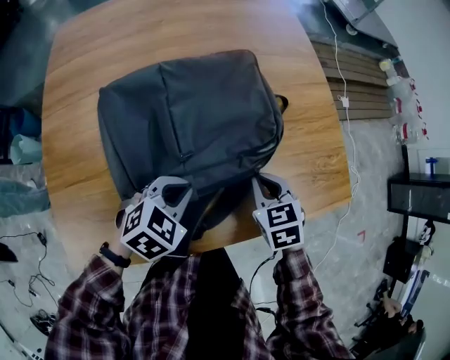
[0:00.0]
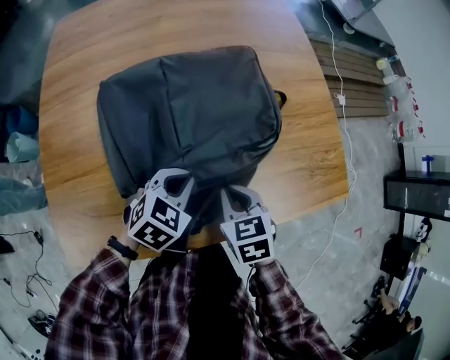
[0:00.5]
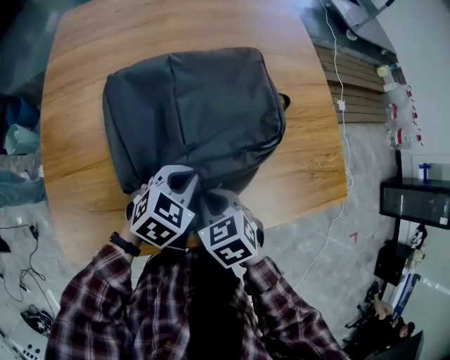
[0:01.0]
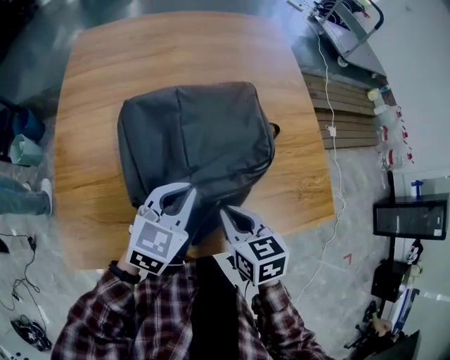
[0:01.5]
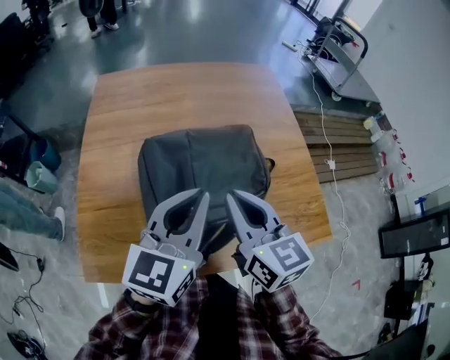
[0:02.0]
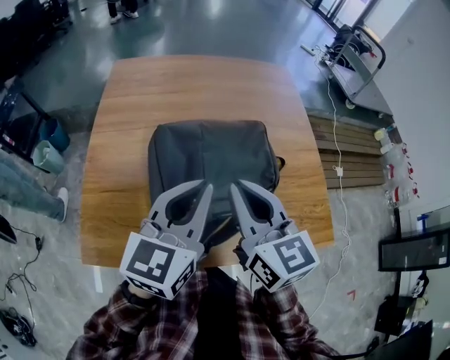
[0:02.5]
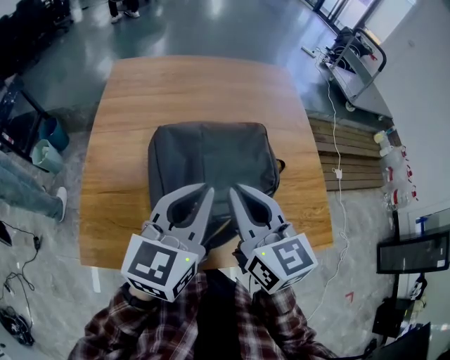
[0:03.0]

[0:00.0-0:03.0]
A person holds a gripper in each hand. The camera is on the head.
0:00.0 to 0:01.5: The left gripper goes approximately 10 cm upward, and swivels roughly 30 degrees; the right gripper shifts about 15 cm to the left, upward and backward.
0:01.5 to 0:03.0: The grippers both shift upward by about 20 cm. The right gripper tips its fingers upward by approximately 30 degrees. Meanwhile the left gripper turns by roughly 30 degrees.

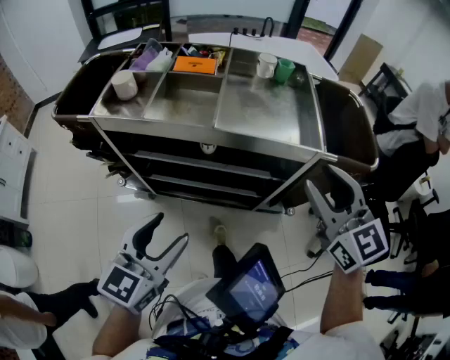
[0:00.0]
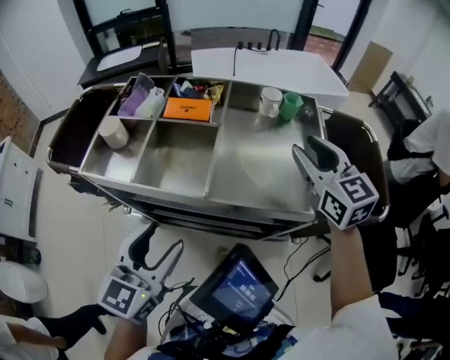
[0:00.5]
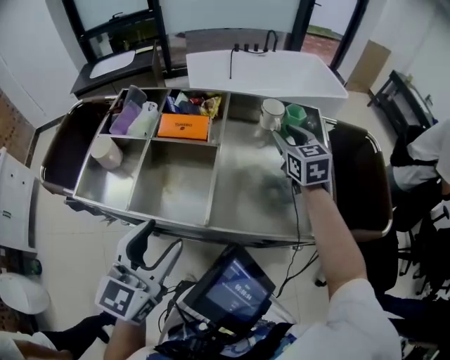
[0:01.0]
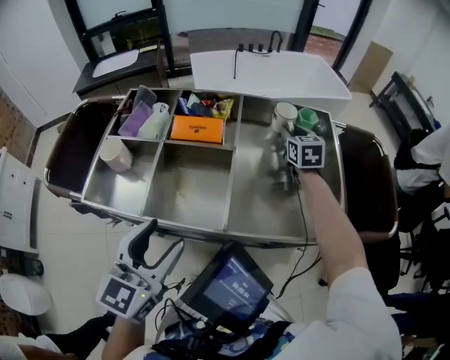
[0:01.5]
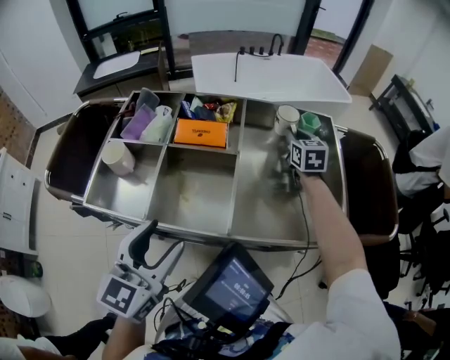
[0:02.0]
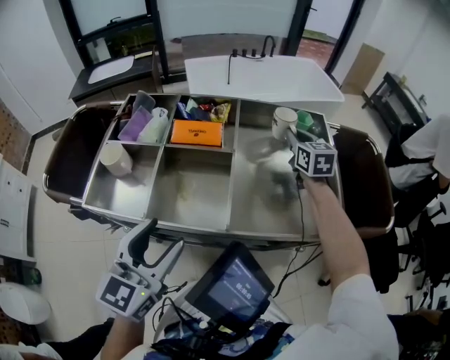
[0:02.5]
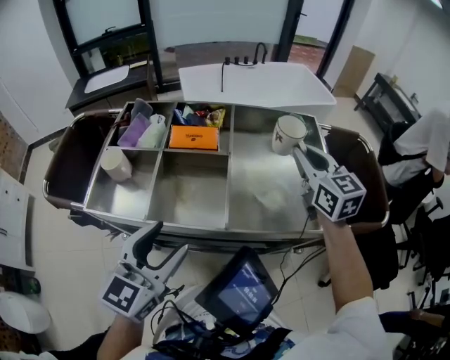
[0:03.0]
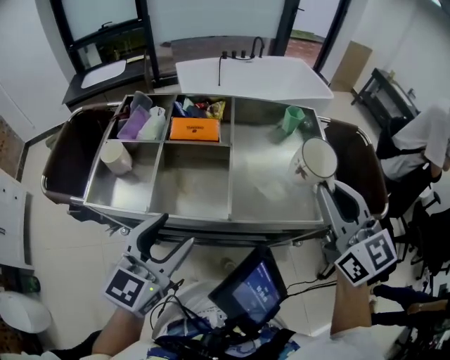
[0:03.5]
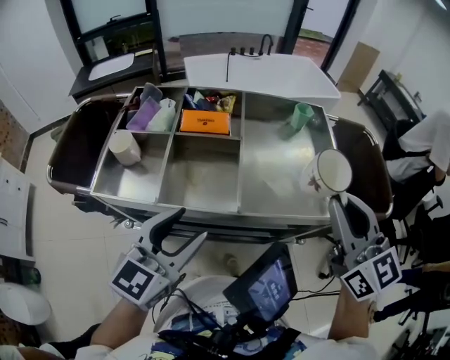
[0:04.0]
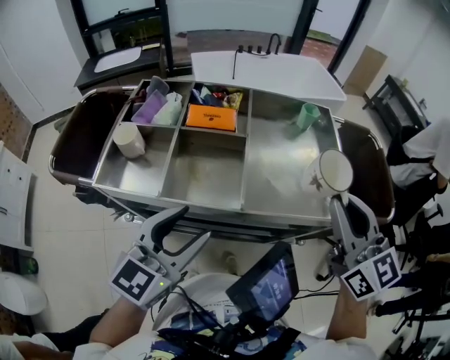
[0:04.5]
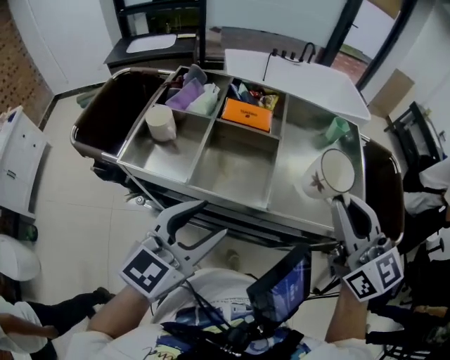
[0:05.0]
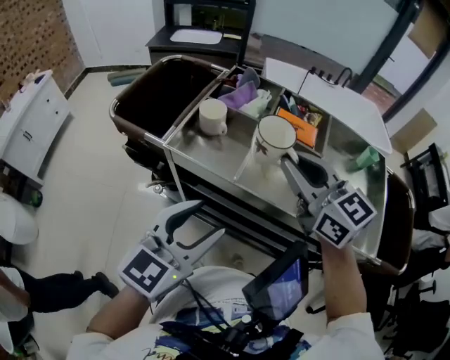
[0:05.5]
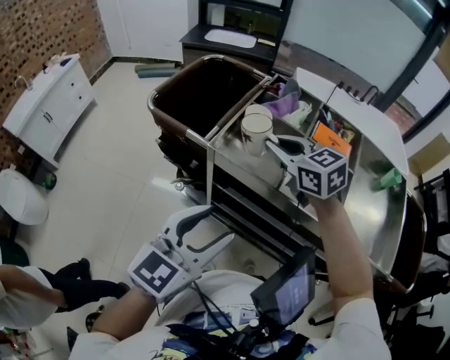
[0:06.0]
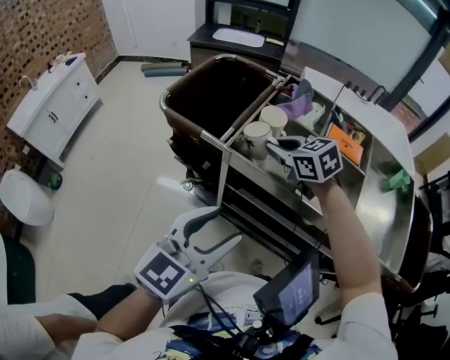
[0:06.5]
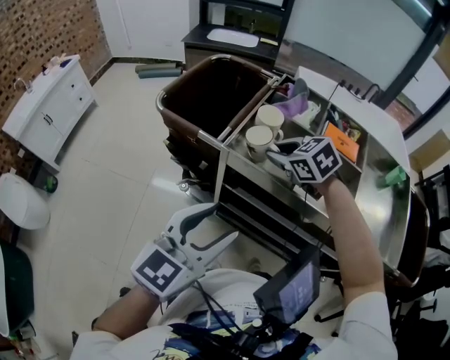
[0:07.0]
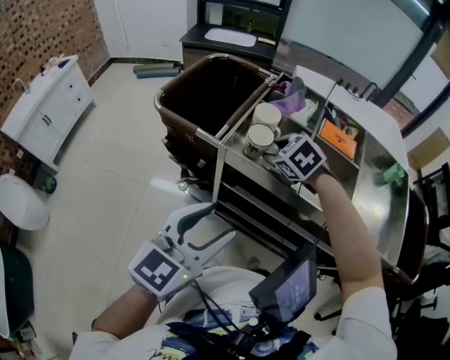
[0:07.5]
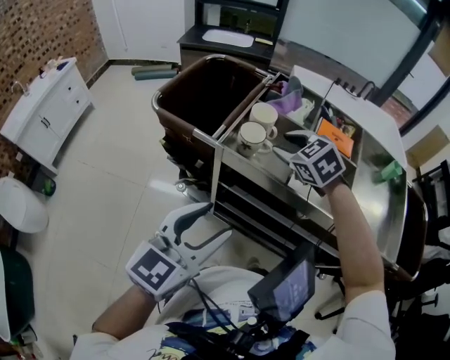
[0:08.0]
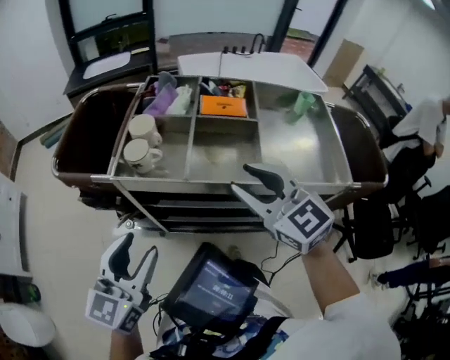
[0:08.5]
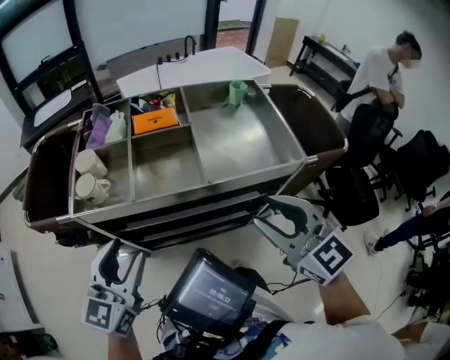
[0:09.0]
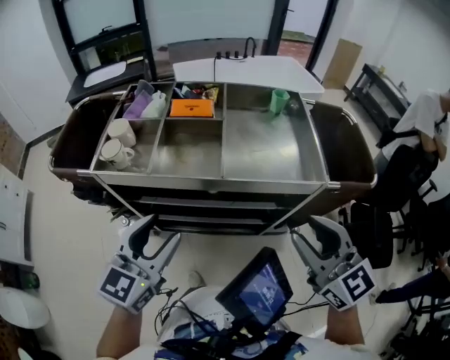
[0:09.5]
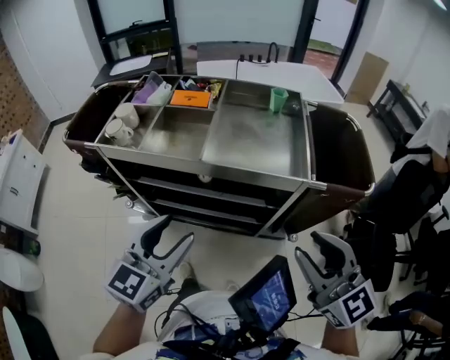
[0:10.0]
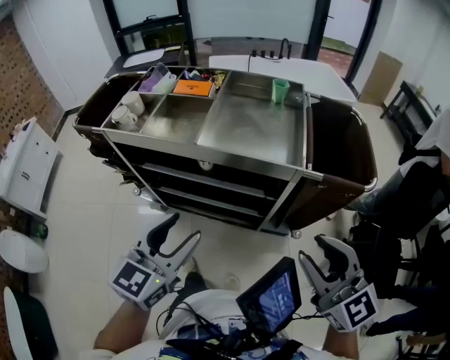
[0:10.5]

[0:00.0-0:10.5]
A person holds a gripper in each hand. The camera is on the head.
0:00.0 to 0:02.0: The left gripper goes roughly 25 cm forward, while the right gripper goes about 50 cm forward, changes its angle by some 30 degrees, and closes.
0:02.0 to 0:04.0: The right gripper goes roughly 40 cm backward and upward, and swivels about 20 degrees.
0:04.0 to 0:06.5: The left gripper moves some 25 cm; the right gripper ends up approximately 50 cm from where it was, and tilts its fingers about 30 degrees downward.
0:06.5 to 0:08.5: The right gripper shifts roughly 30 cm backward, to the right and upward, changes its angle by roughly 30 degrees, and opens up.
0:08.5 to 0:10.5: The pair of grippers is taken to the right and backward, roughly 50 cm.

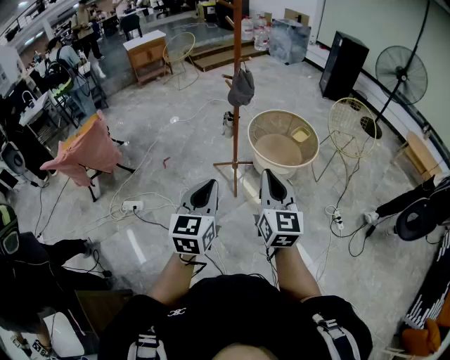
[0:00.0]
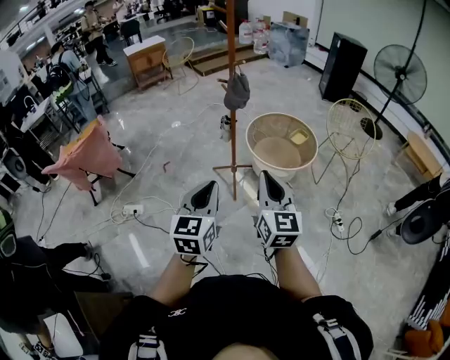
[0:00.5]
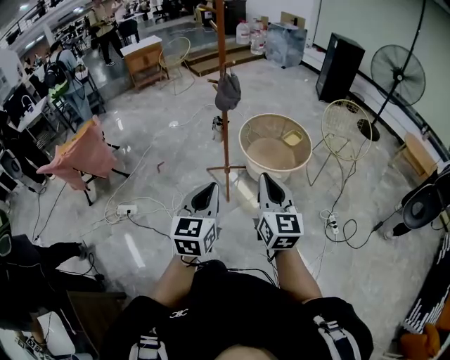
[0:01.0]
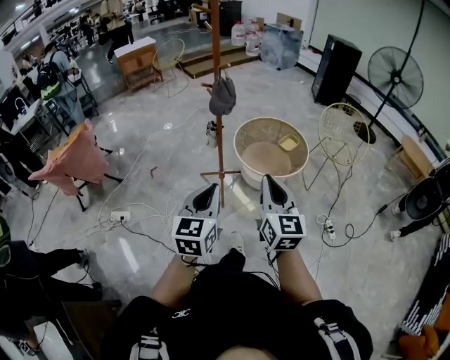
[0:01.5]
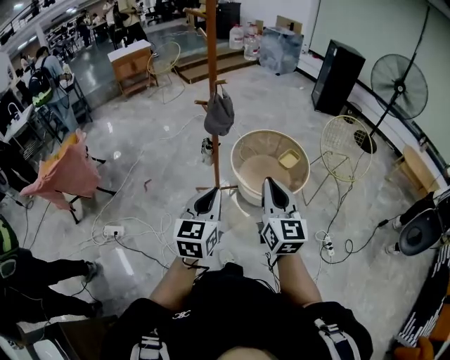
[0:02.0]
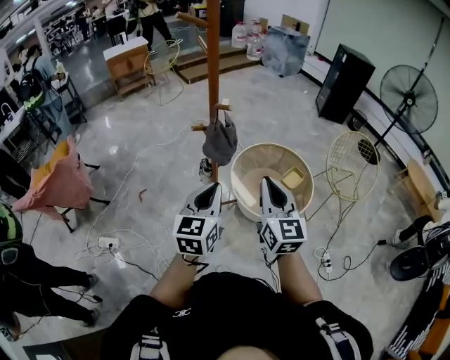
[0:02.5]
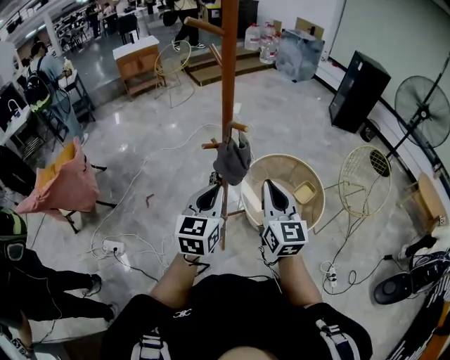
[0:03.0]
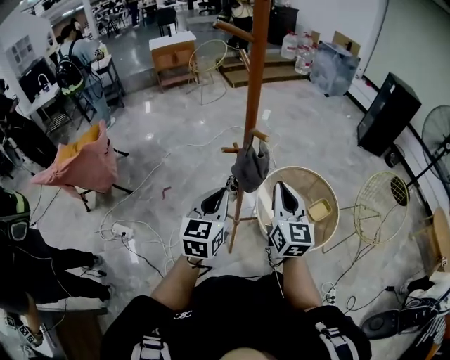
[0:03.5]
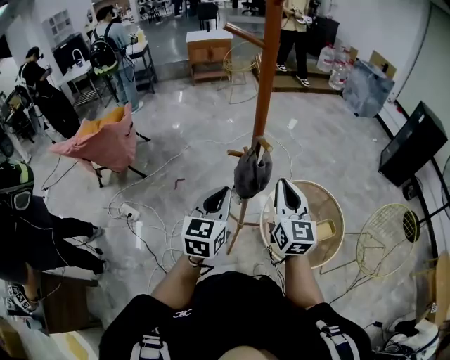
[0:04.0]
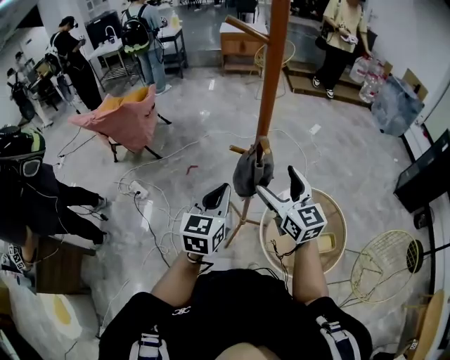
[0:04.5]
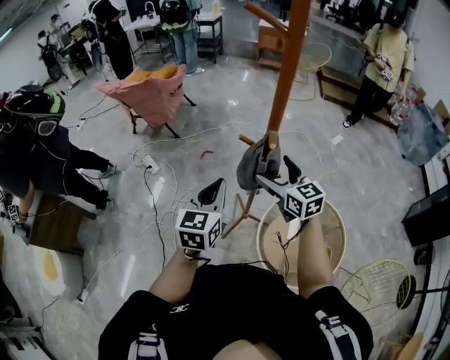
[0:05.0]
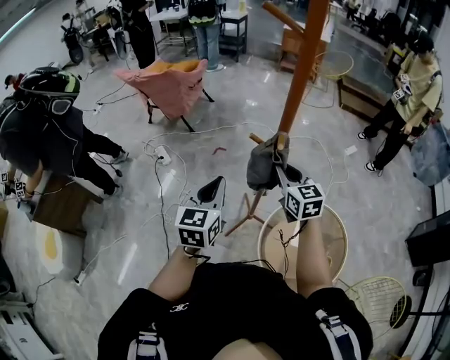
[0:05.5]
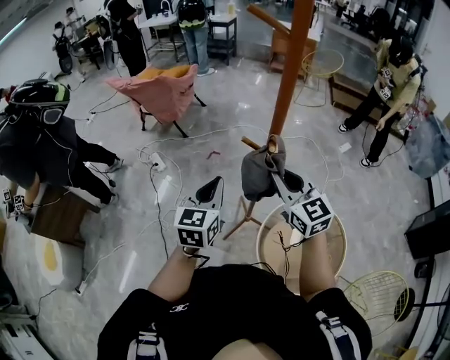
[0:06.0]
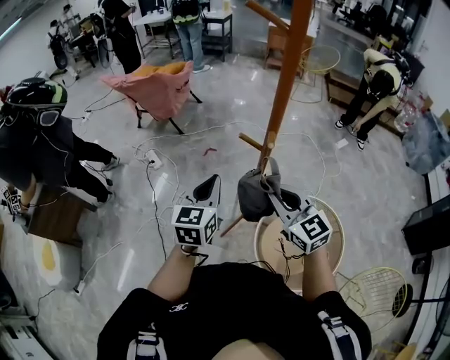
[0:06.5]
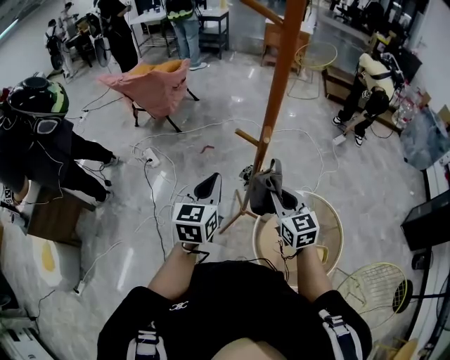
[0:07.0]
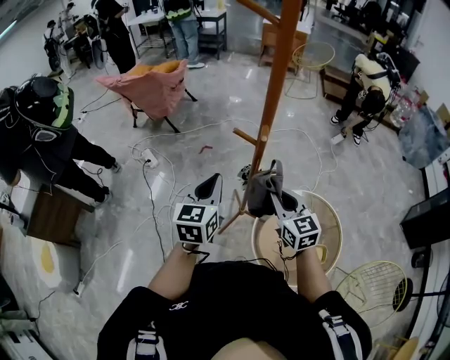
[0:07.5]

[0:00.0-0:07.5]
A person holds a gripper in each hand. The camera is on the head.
0:00.0 to 0:02.0: Both grippers travel together forward, roughly 25 cm.
0:02.0 to 0:04.0: The grippers both shift forward by approximately 40 cm. The left gripper swivels some 20 degrees; the right gripper rotates approximately 20 degrees.
0:04.0 to 0:05.5: The left gripper rotates about 30 degrees. The right gripper changes place by roughly 15 cm, changes its angle by approximately 50 degrees, and opens and closes again.
0:05.5 to 0:07.5: The right gripper goes some 10 cm backward, and reaches about 5 cm upward, then returns.

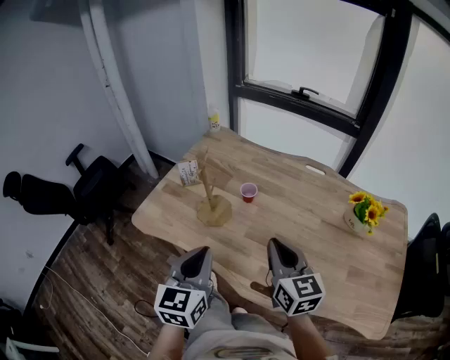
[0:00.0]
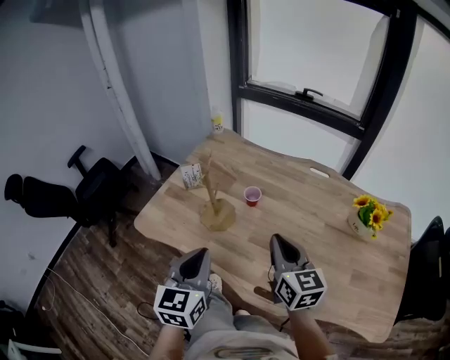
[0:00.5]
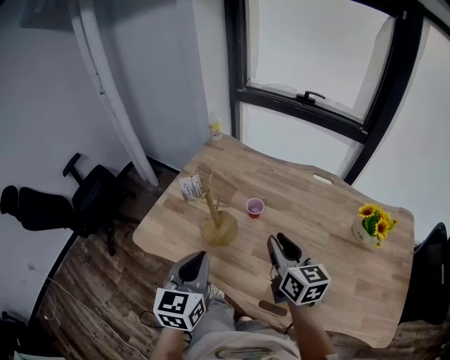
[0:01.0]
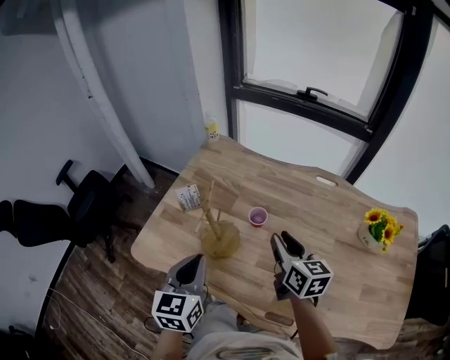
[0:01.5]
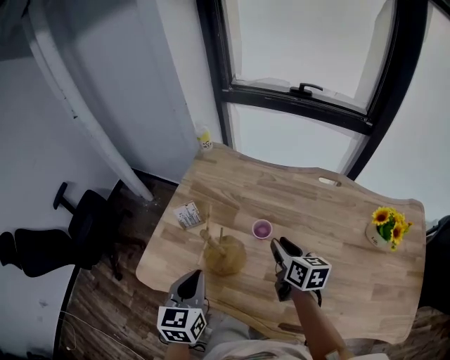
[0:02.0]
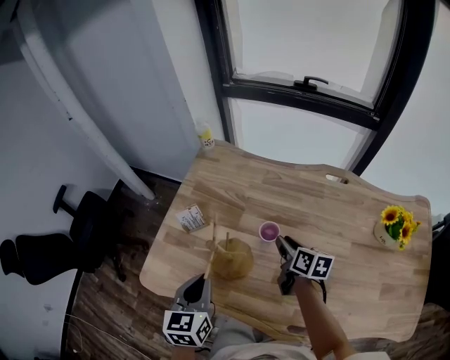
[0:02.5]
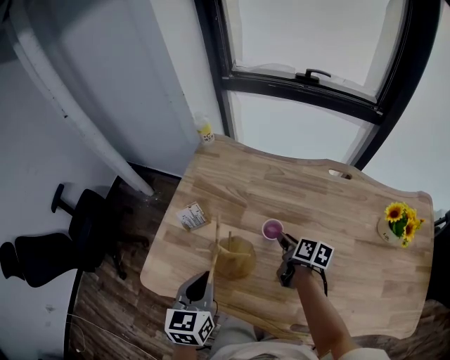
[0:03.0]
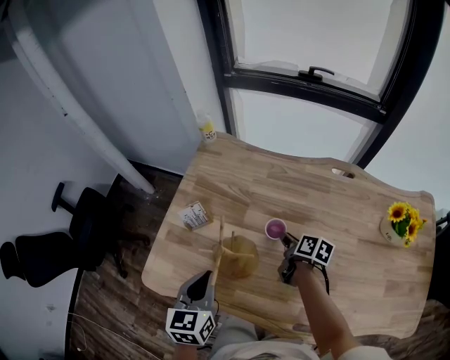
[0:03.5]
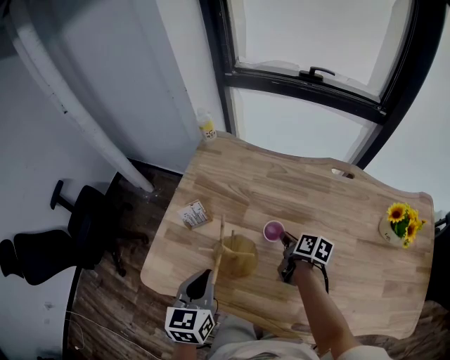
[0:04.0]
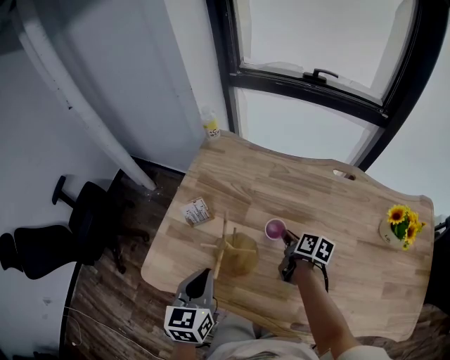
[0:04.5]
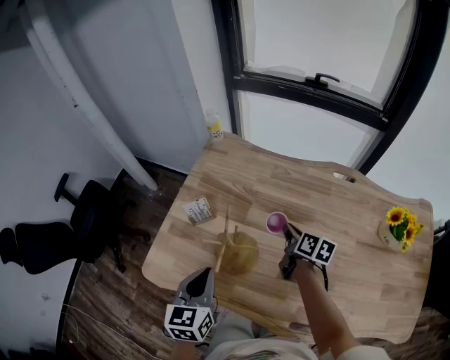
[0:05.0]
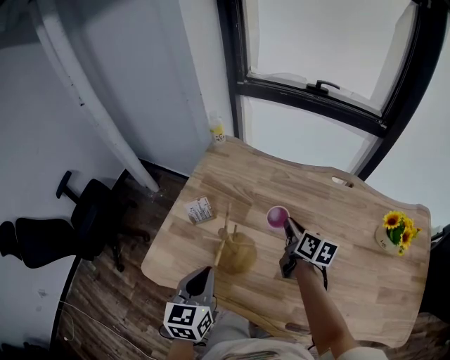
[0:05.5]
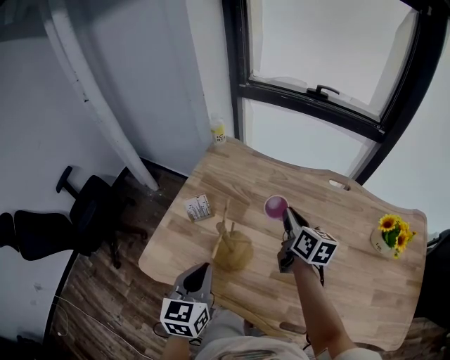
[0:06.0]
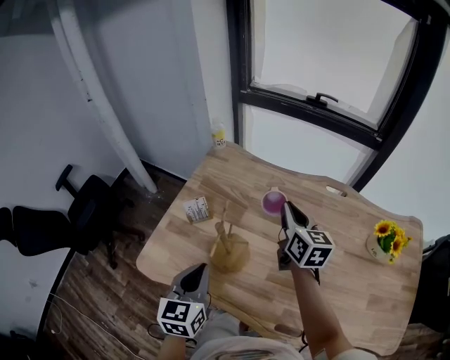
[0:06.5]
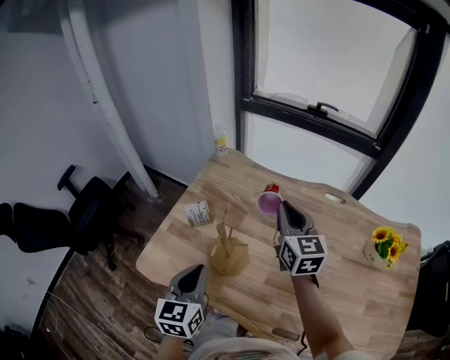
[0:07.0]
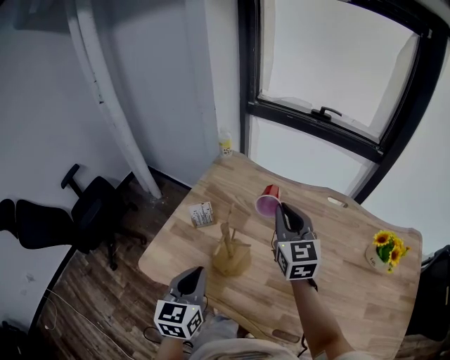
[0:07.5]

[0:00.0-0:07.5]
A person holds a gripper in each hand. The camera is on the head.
0:00.0 to 0:02.0: The left gripper shifts about 20 cm forward and to the left. The right gripper shifts roughly 25 cm forward and downward, swivels about 30 degrees, and opens up.
0:02.0 to 0:04.0: The left gripper shifts by some 5 cm. Meanwhile the right gripper travels downward and forward by roughly 15 cm, swivels roughly 30 degrees, and closes its fingers.
0:04.0 to 0:05.5: The right gripper shifts approximately 10 cm upward, and rotates some 20 degrees.
0:05.5 to 0:07.5: The right gripper shifts about 15 cm upward, and twists approximately 50 degrees counterclockwise, seen from behind.
